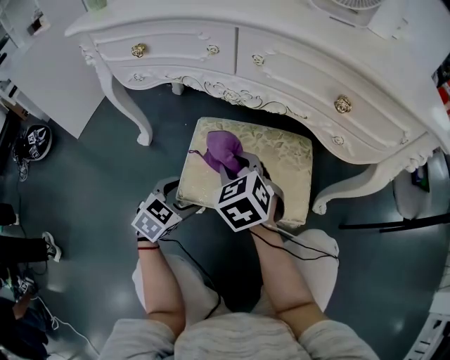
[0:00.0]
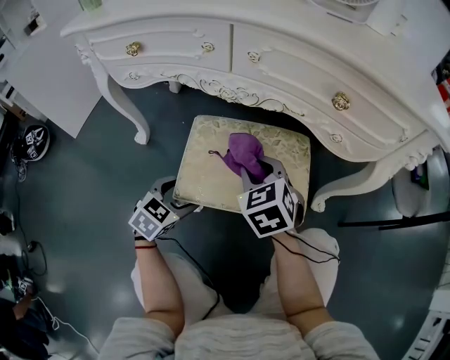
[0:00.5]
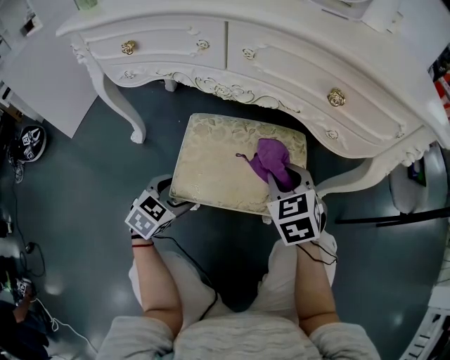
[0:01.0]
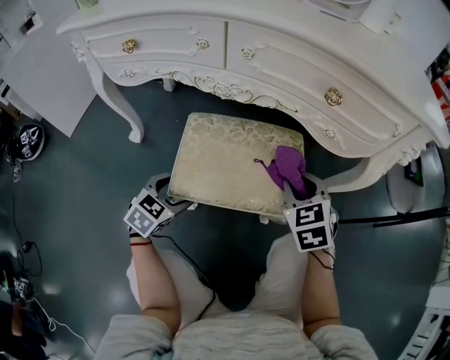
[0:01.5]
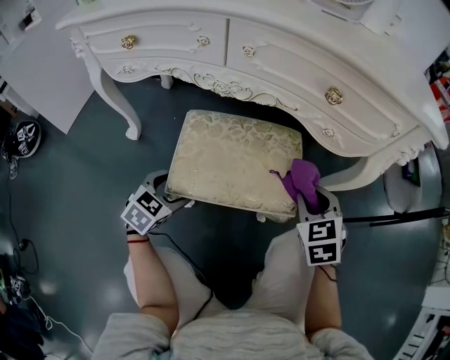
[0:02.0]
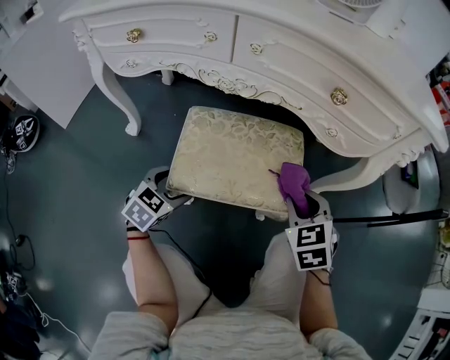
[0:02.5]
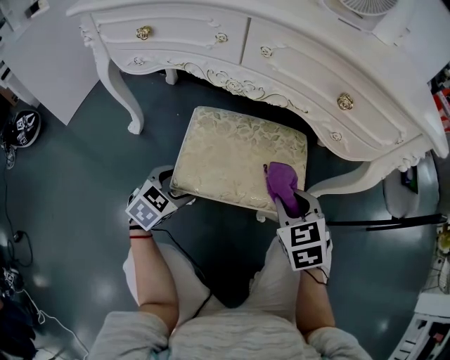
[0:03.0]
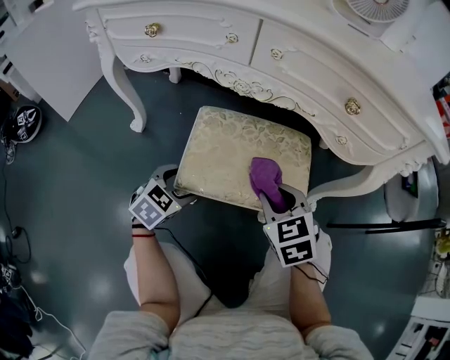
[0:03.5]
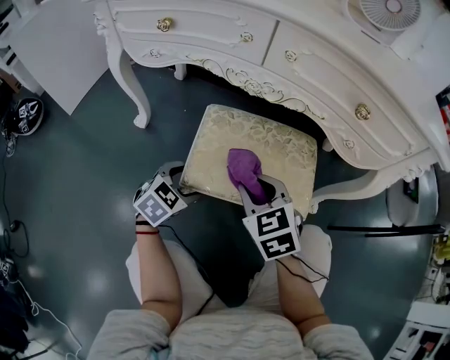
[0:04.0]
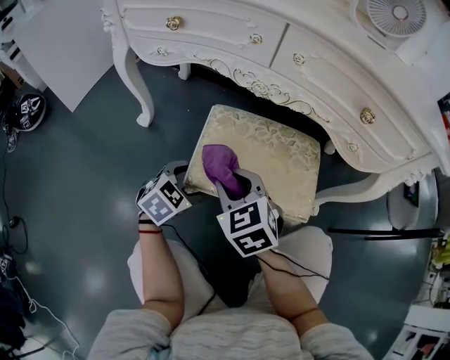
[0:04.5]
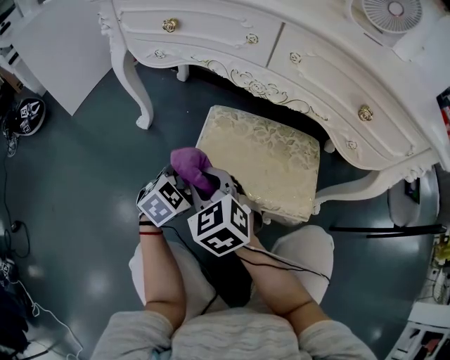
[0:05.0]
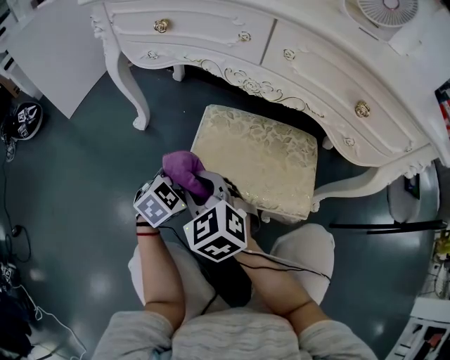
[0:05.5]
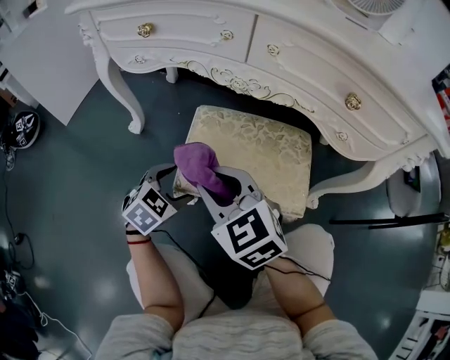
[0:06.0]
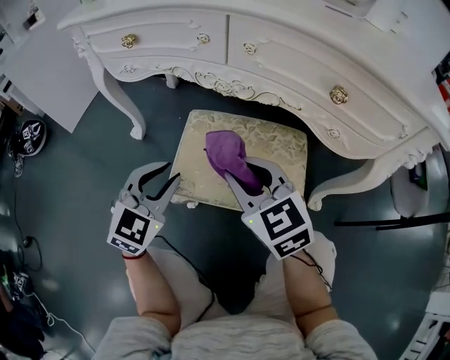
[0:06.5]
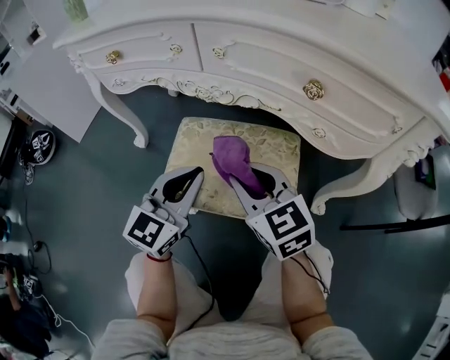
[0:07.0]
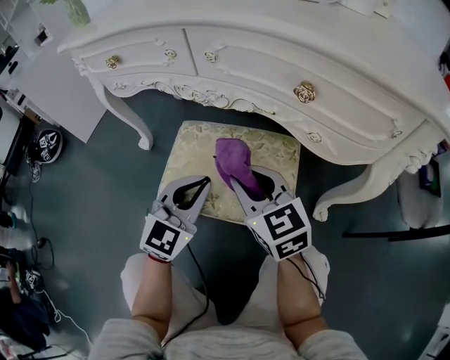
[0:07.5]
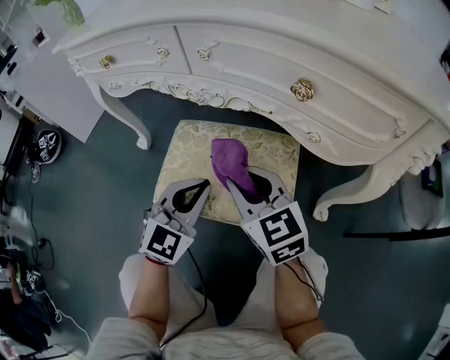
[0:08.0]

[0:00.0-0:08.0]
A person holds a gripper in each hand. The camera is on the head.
0:00.0 to 0:02.0: The right gripper heads to the right, covering roughly 25 cm.
0:02.0 to 0:04.0: The right gripper shifts approximately 20 cm to the left, and rotates some 20 degrees.
0:04.0 to 0:06.0: The right gripper moves to the left and upward, about 10 cm.
0:06.0 to 0:08.0: The left gripper is displaced to the right and upward by about 20 cm, swivels some 30 degrees, and closes, while the right gripper goes roughly 15 cm to the right.

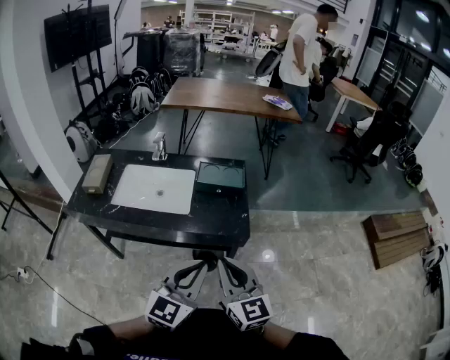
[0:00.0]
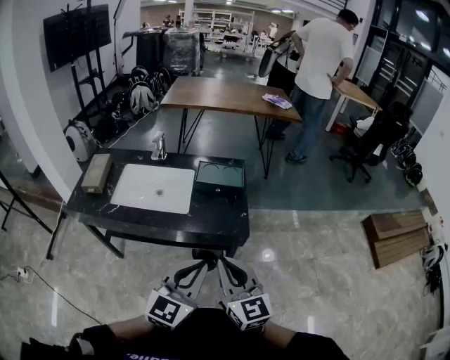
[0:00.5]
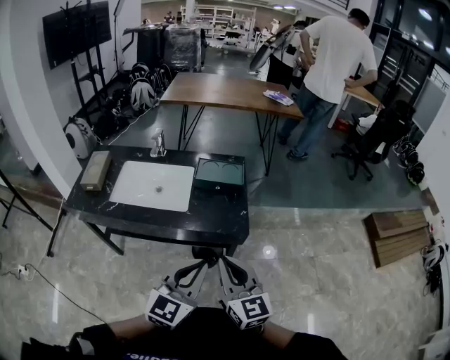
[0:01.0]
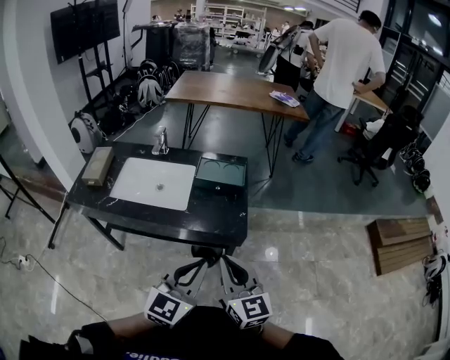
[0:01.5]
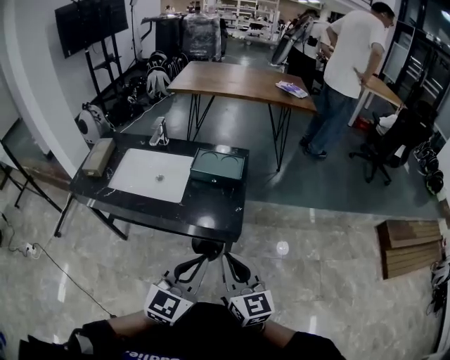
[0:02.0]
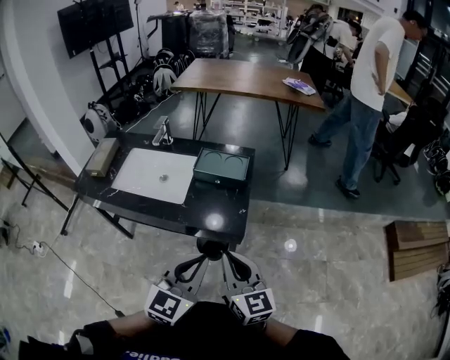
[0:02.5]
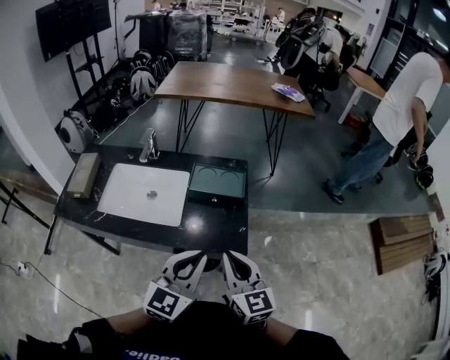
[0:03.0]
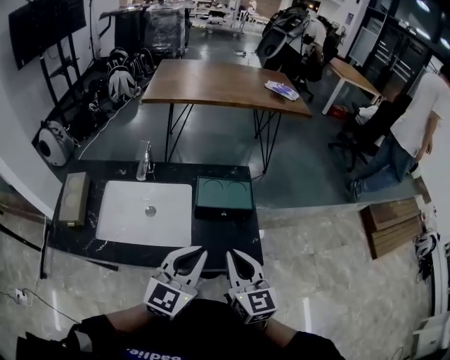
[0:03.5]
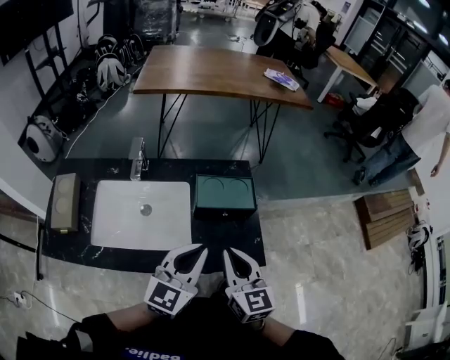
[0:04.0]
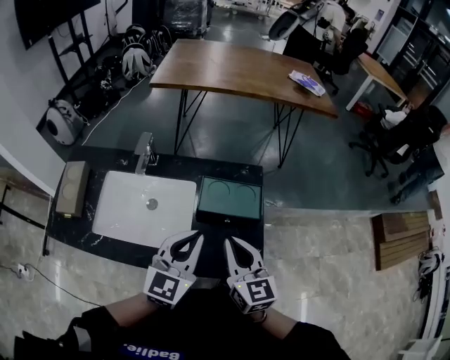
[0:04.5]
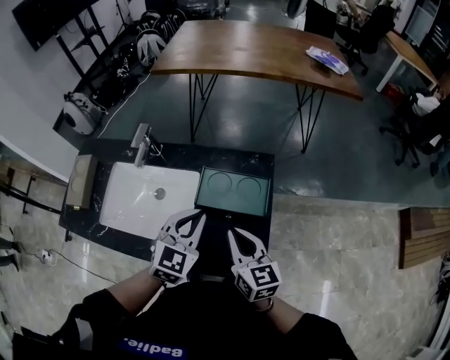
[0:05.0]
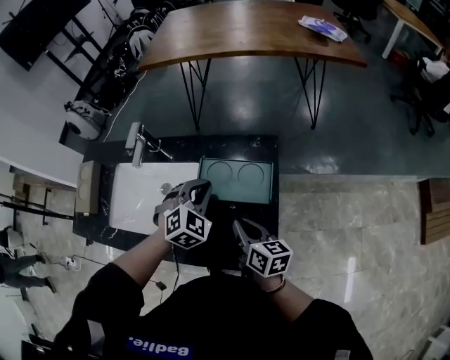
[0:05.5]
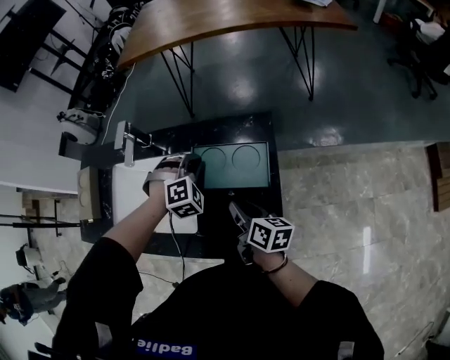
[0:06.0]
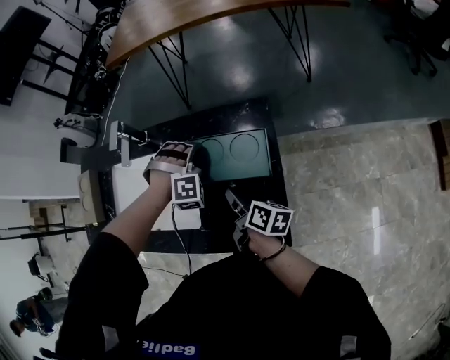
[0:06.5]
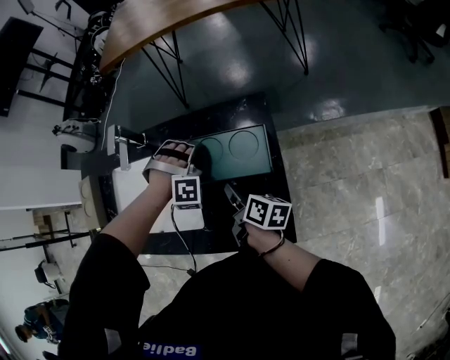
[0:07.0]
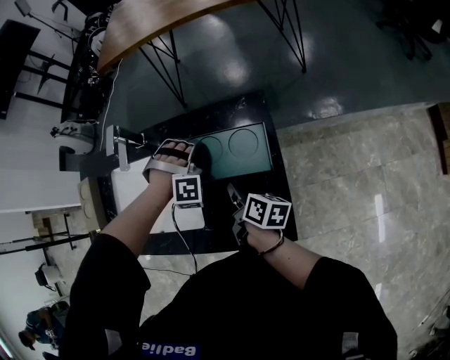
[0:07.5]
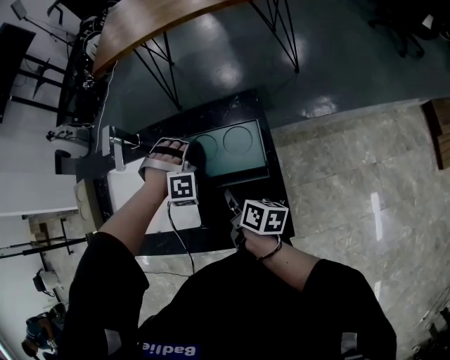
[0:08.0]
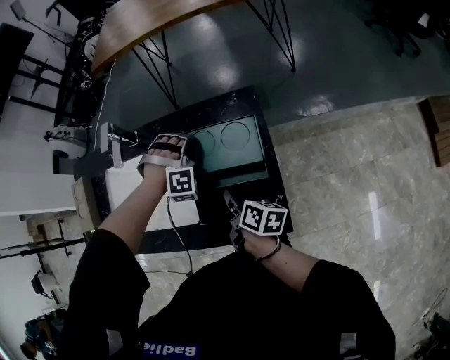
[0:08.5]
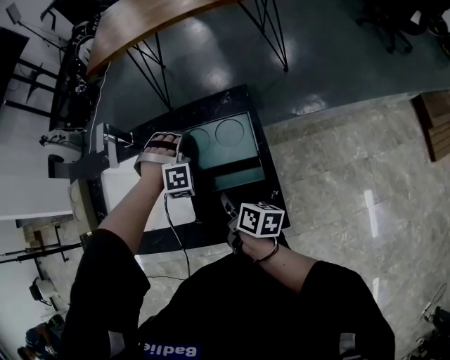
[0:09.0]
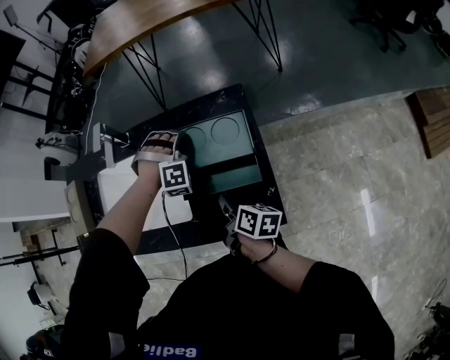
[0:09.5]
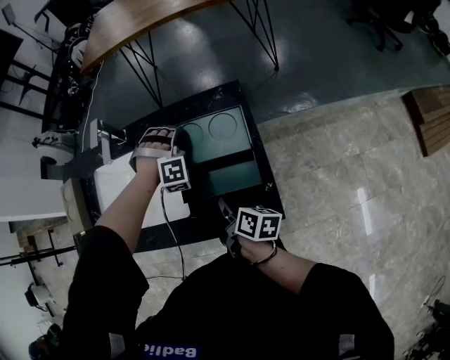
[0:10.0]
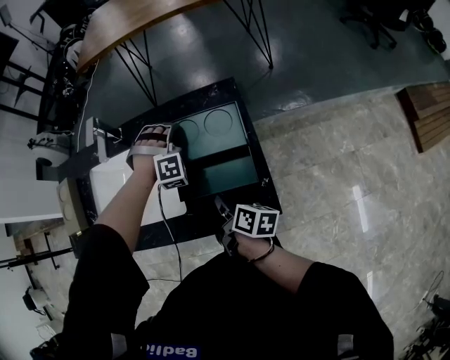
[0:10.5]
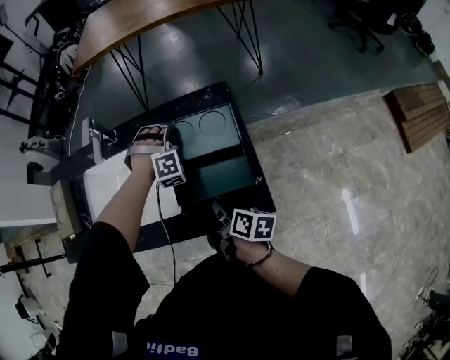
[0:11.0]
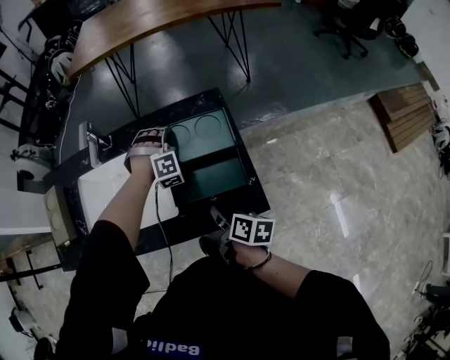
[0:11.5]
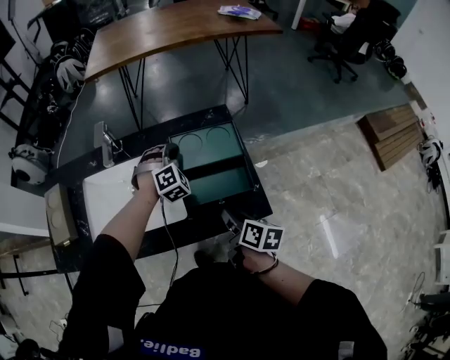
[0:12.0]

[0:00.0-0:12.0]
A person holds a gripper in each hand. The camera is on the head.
0:00.0 to 0:02.0: The two grippers go about 10 cm to the right.
0:02.0 to 0:04.0: The two grippers go about 30 cm forward and to the left.
0:04.0 to 0:06.0: The left gripper moves roughly 35 cm, and tilts its fingers roughly 50 degrees downward; the right gripper goes about 20 cm downward, rolls clockwise, seen from behind, by some 50 degrees, and opens.
0:06.0 to 0:08.0: The left gripper swivels some 30 degrees.
0:08.0 to 0:10.0: The right gripper heads backward, covering roughly 5 cm.
0:10.0 to 0:12.0: The right gripper moves backward and upward, some 10 cm. The left gripper changes place by roughly 5 cm, and swivels some 30 degrees.

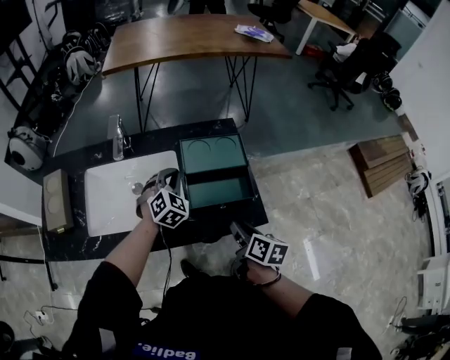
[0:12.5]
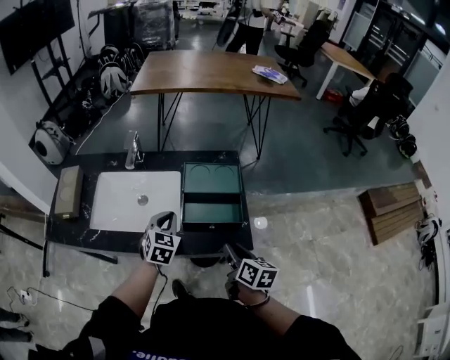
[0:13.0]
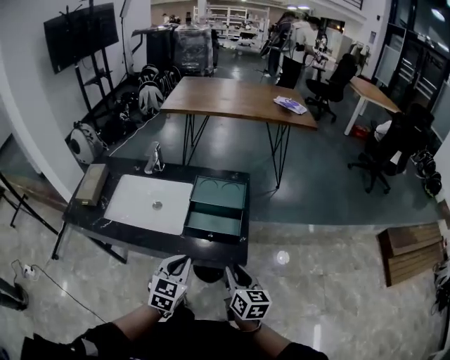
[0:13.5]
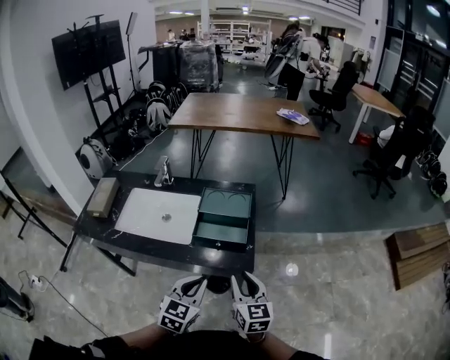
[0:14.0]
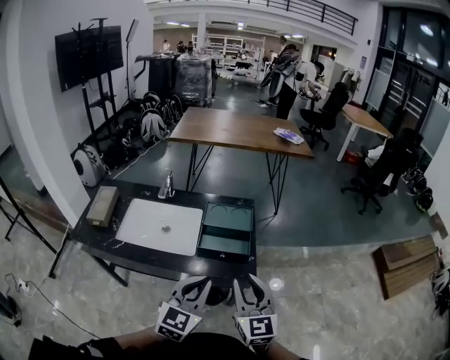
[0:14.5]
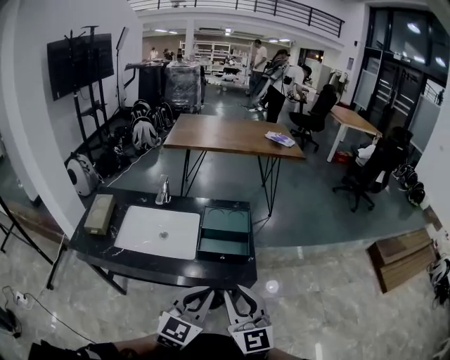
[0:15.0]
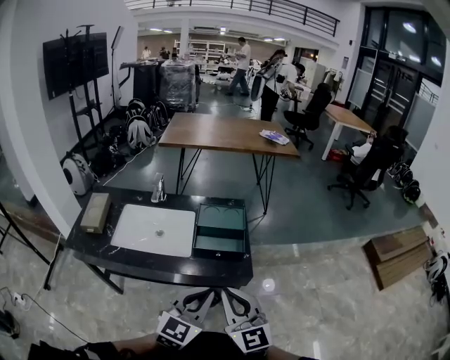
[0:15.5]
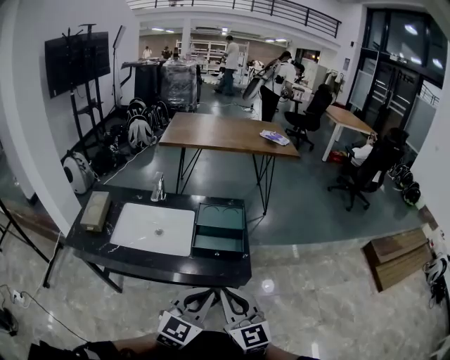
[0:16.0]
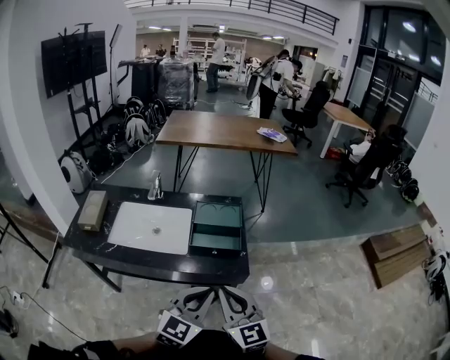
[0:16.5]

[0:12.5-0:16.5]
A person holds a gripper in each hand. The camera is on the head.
0:12.5 to 0:14.5: The right gripper is displaced upward and backward by roughly 25 cm, and twists approximately 50 degrees counterclockwise, seen from behind. Meanwhile the left gripper goes roughly 40 cm backward and upward, and changes its angle by about 40 degrees.
0:14.5 to 0:16.5: The right gripper goes about 5 cm backward, and closes up; the left gripper moves approximately 5 cm.

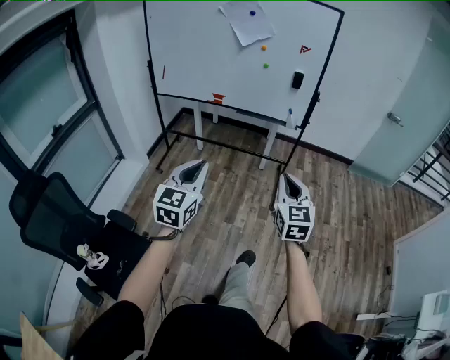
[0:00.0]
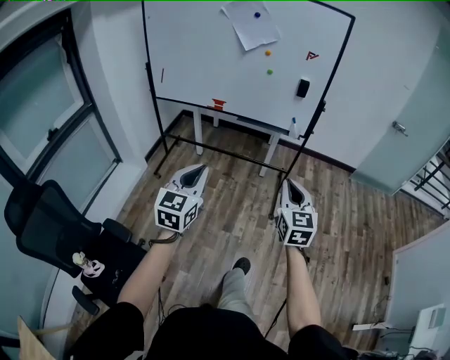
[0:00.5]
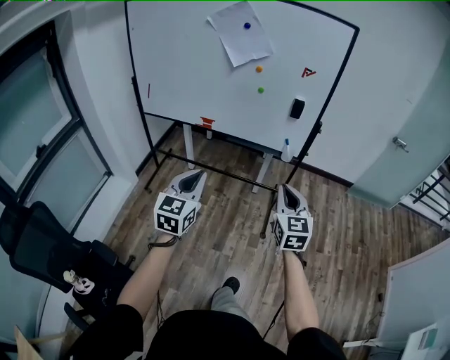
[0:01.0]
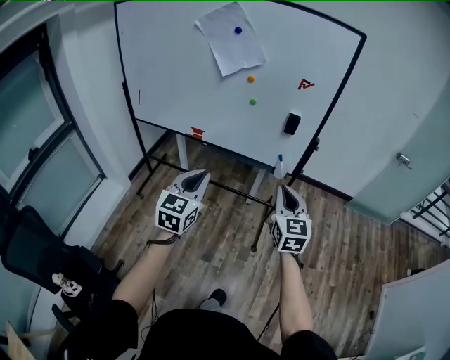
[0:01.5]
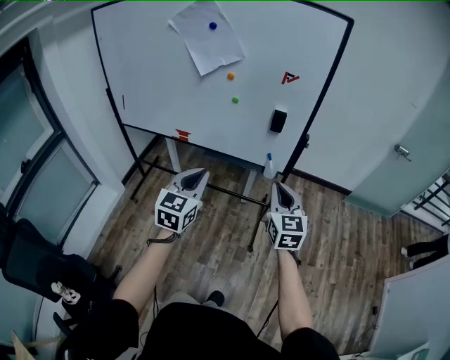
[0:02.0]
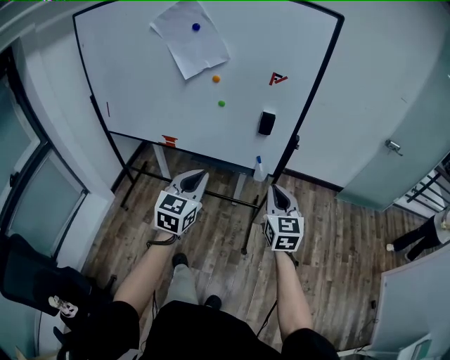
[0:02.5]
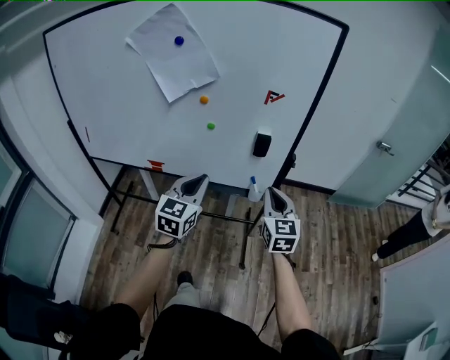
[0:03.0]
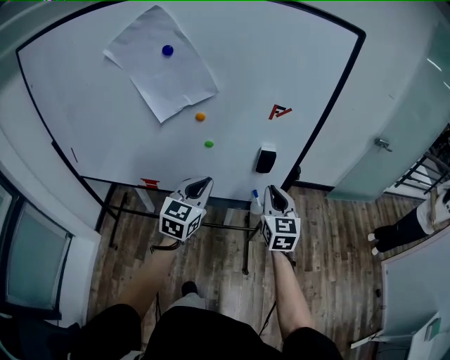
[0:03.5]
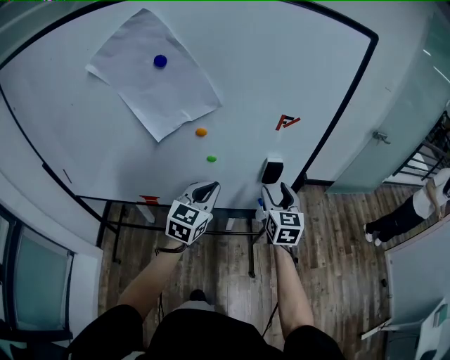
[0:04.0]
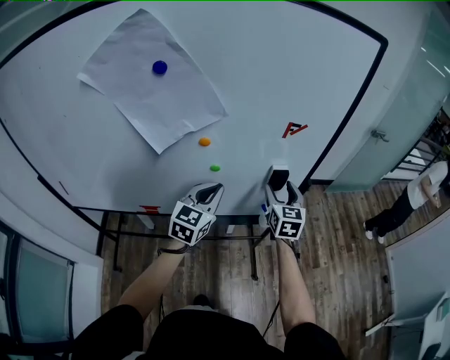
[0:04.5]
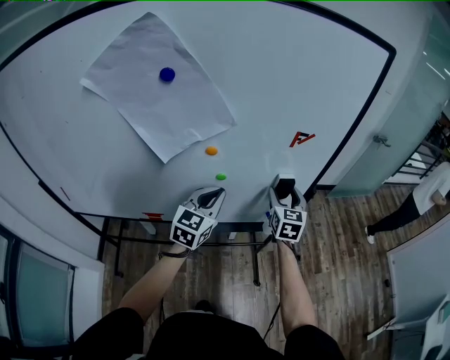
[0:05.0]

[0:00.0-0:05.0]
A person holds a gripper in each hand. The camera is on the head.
0:00.0 to 0:02.5: Both grippers are carried forward, roughly 50 cm.
0:02.5 to 0:05.0: The two grippers go approximately 30 cm forward. The right gripper turns by roughly 30 degrees, and opens; the left gripper changes its angle by approximately 20 degrees.
